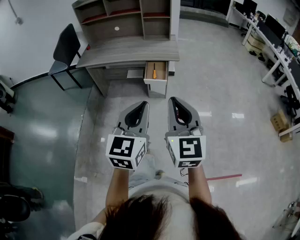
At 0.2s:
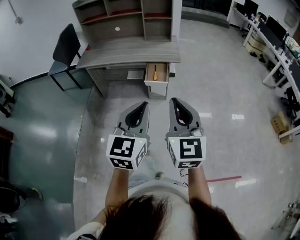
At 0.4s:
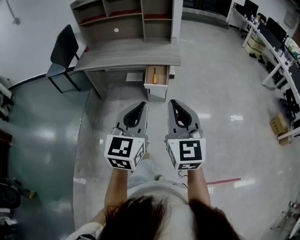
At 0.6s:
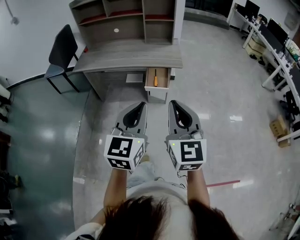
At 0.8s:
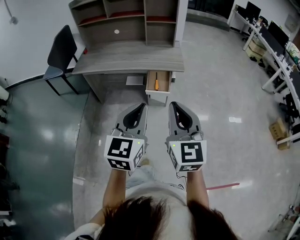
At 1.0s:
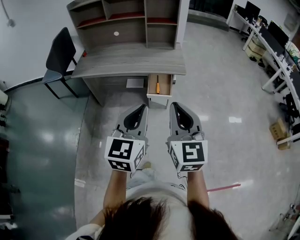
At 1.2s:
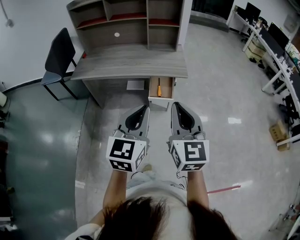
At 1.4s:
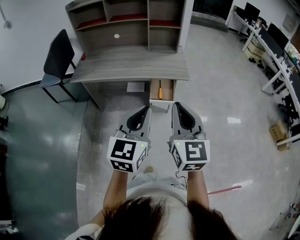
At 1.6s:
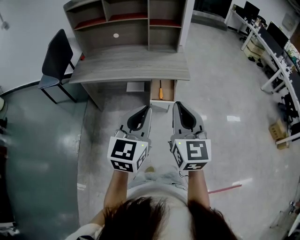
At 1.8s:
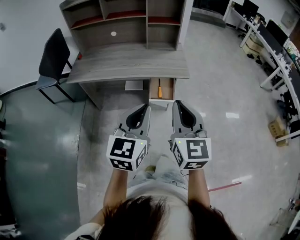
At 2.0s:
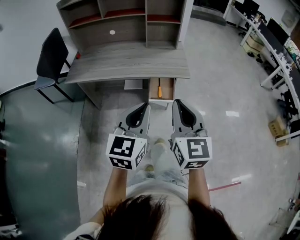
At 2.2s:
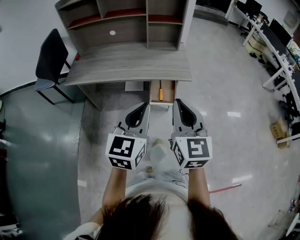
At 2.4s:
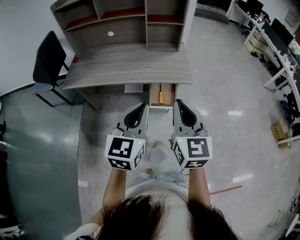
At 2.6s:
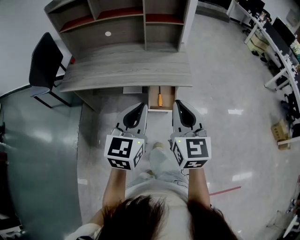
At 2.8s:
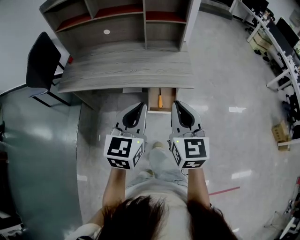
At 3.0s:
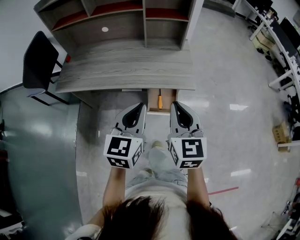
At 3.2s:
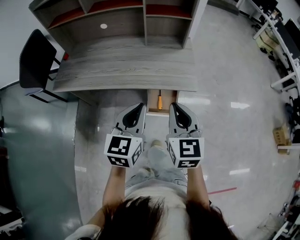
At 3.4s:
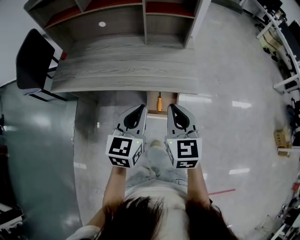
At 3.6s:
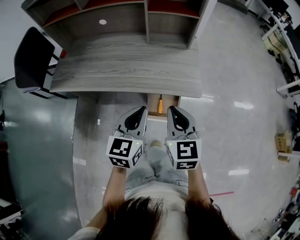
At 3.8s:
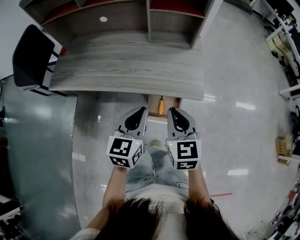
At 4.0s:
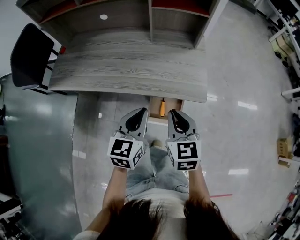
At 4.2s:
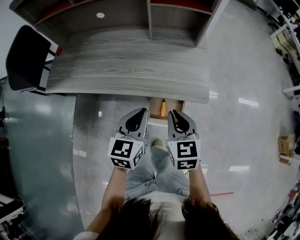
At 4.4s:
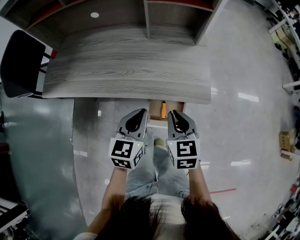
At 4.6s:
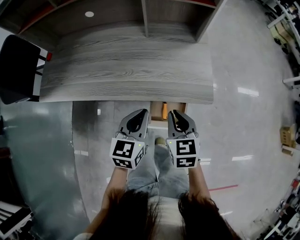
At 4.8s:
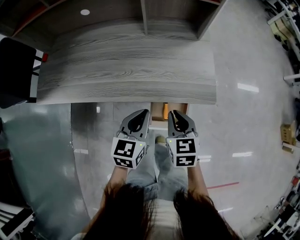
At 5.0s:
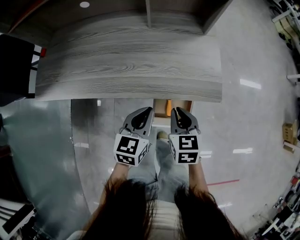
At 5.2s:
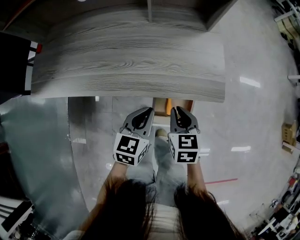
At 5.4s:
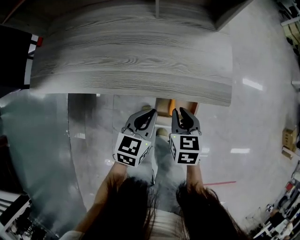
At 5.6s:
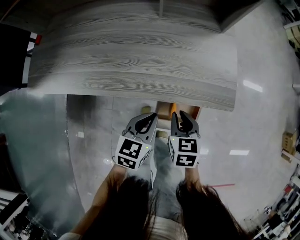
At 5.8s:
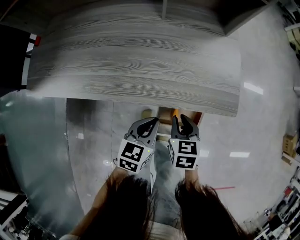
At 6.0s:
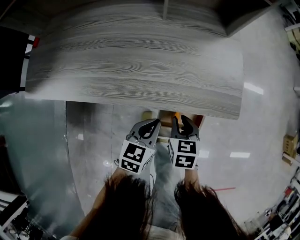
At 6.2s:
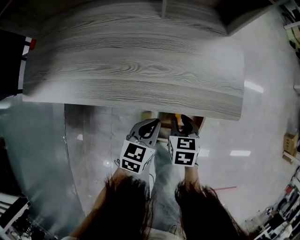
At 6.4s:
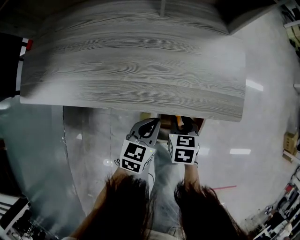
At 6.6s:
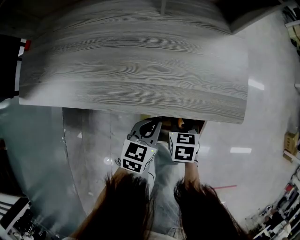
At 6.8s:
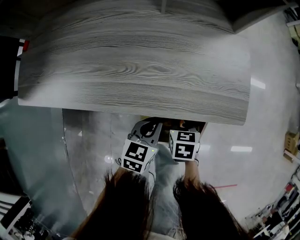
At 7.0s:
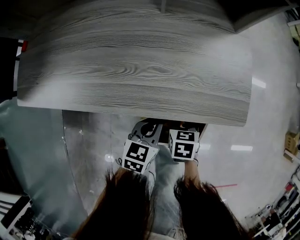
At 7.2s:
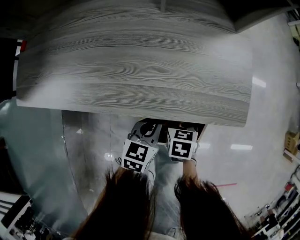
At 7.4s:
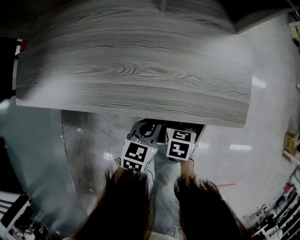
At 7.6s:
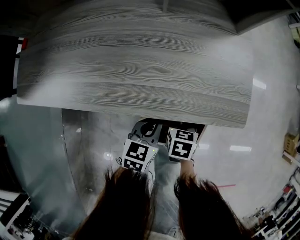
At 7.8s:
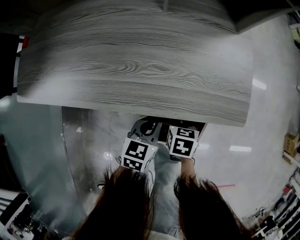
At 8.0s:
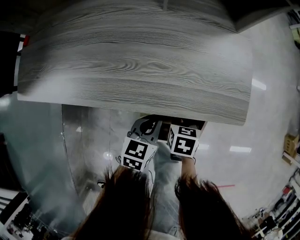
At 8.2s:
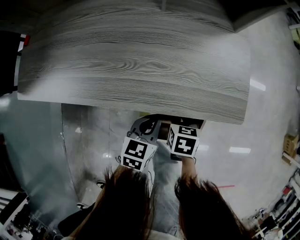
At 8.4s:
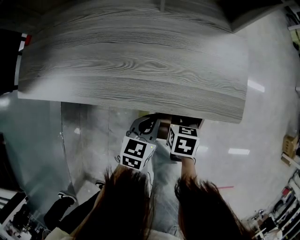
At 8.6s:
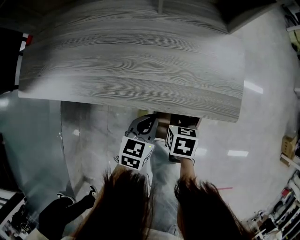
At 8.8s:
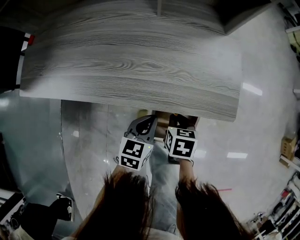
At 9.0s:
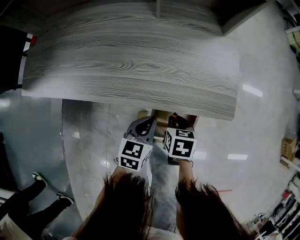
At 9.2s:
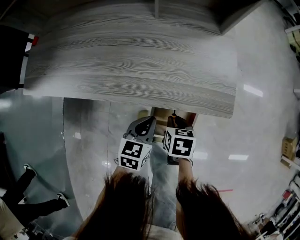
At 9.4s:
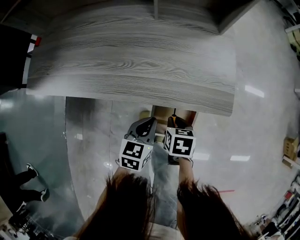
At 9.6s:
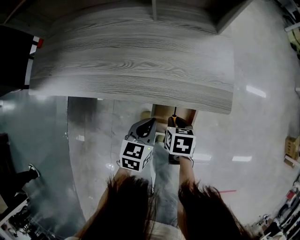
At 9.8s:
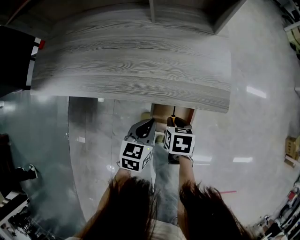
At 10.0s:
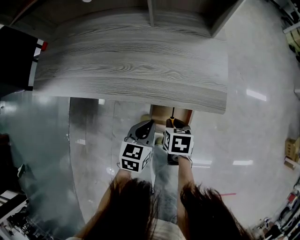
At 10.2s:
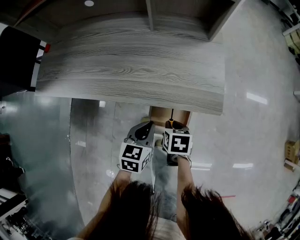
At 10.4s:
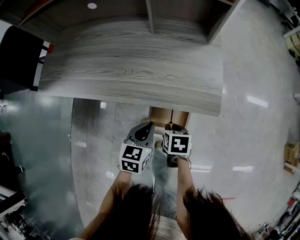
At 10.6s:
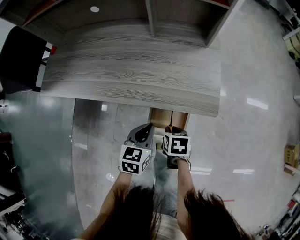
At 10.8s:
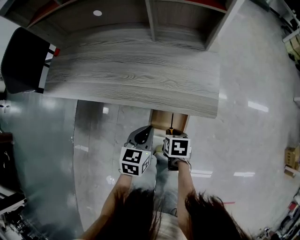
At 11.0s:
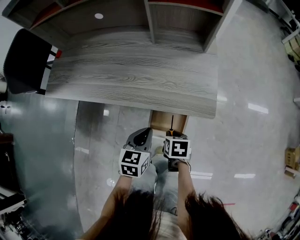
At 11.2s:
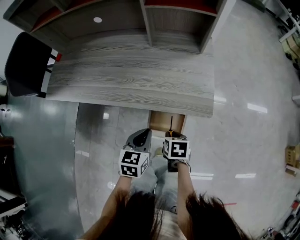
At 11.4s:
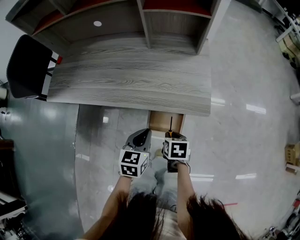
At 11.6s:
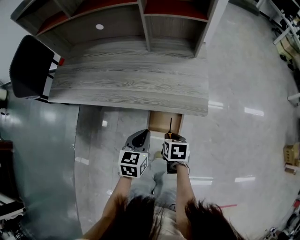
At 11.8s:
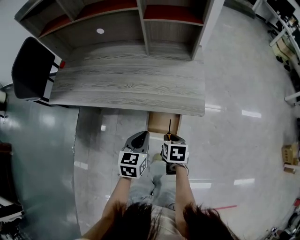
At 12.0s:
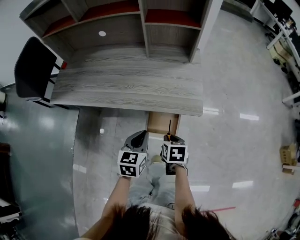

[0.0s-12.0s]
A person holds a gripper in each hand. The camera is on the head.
0.0s to 1.6s: Both grippers travel together forward and to the left, approximately 25 cm.
1.6s to 3.0s: Both grippers travel together forward, some 25 cm.
3.0s to 4.4s: The grippers both shift downward and forward by about 25 cm. The right gripper rotates roughly 20 degrees.
4.4s to 6.0s: Both grippers move downward, approximately 20 cm. The right gripper rotates about 20 degrees.
6.0s to 7.6s: The left gripper travels downward by some 5 cm. The right gripper shifts roughly 10 cm downward.
7.6s to 9.0s: The right gripper shifts by roughly 5 cm.
9.0s to 10.4s: The left gripper heads upward, covering some 5 cm; the right gripper moves approximately 5 cm.
10.4s to 12.0s: The left gripper travels upward by about 10 cm, while the right gripper moves upward and backward, roughly 10 cm.

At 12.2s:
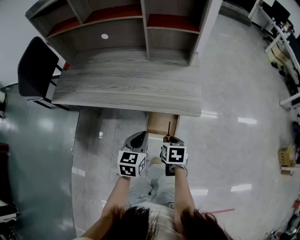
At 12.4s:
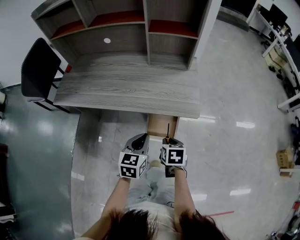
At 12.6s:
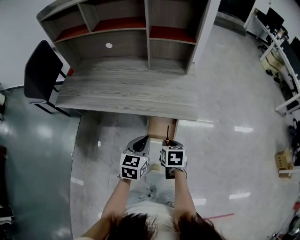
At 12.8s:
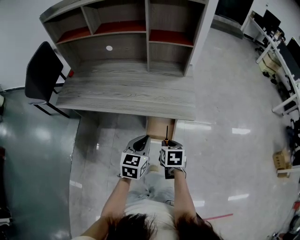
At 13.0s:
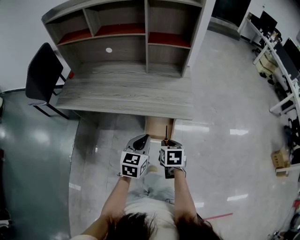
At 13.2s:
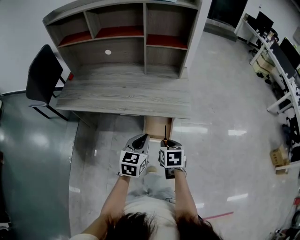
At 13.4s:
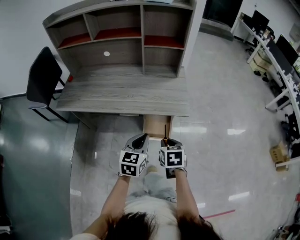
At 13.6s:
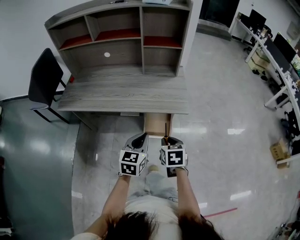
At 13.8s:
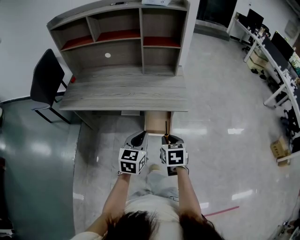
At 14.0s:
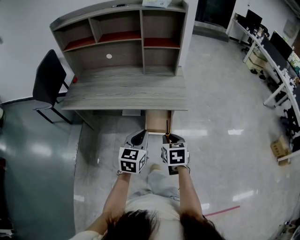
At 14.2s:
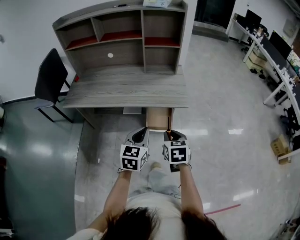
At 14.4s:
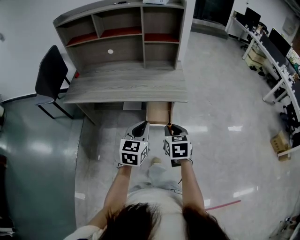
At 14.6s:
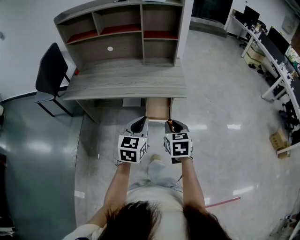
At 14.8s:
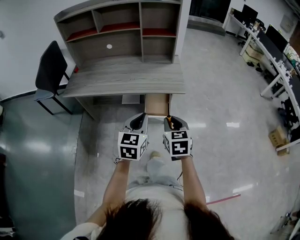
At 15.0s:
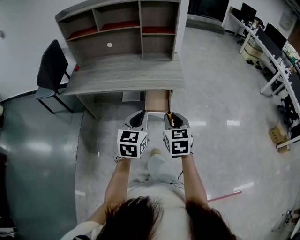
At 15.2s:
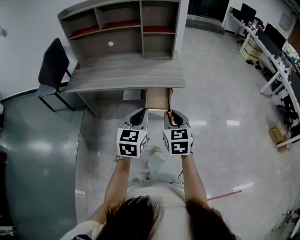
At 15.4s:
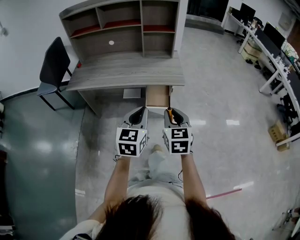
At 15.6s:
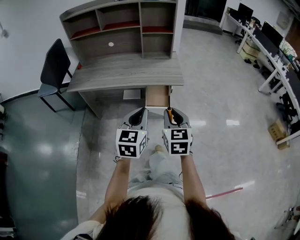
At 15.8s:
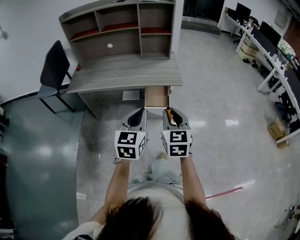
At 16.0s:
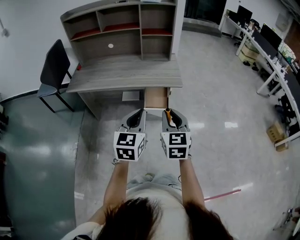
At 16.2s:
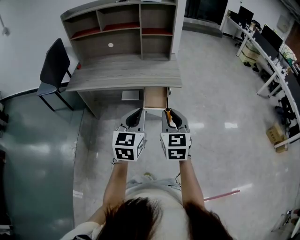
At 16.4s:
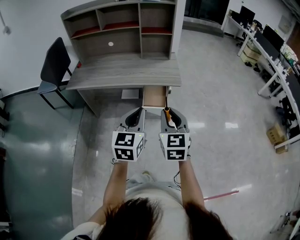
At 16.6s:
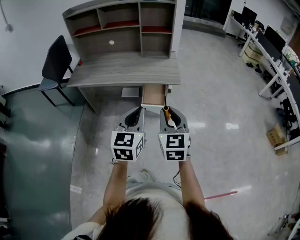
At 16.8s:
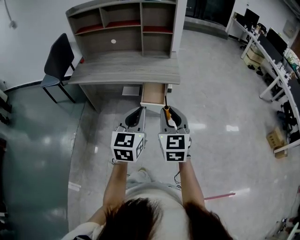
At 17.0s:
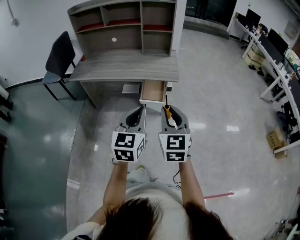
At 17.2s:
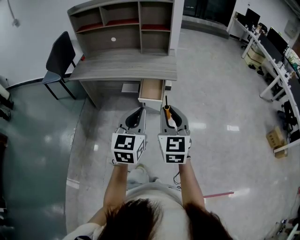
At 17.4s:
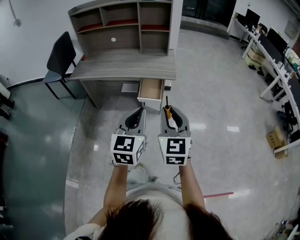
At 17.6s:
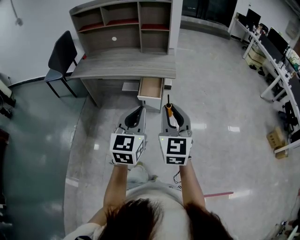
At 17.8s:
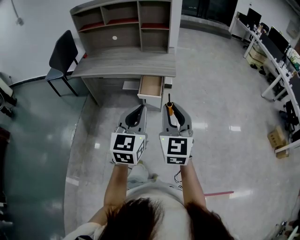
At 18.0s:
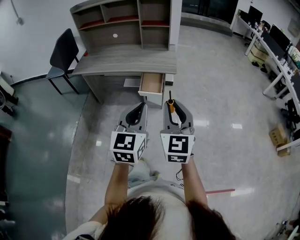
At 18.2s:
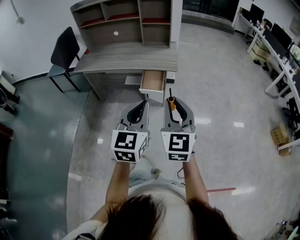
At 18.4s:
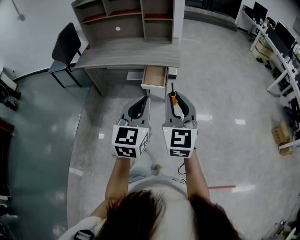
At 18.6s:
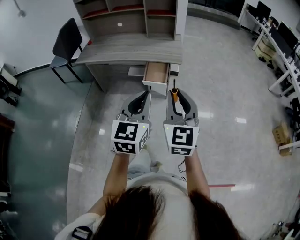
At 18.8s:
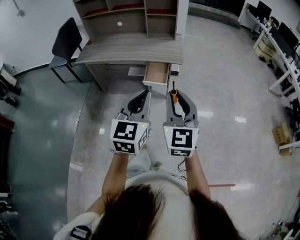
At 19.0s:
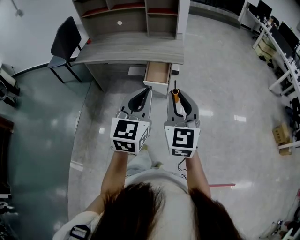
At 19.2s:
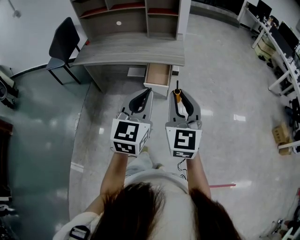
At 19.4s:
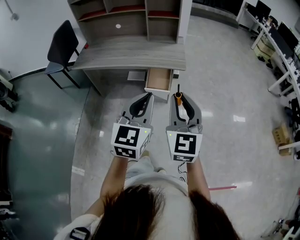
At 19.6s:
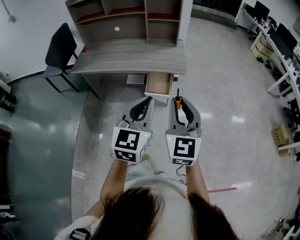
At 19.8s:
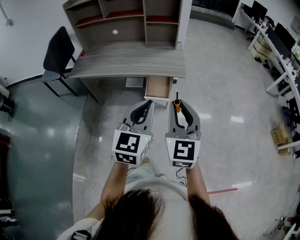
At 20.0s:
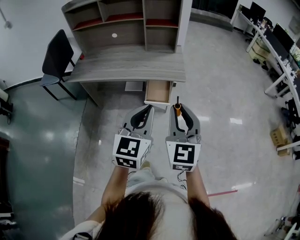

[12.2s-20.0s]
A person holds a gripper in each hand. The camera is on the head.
12.2s to 13.8s: The right gripper heads upward and backward, covering approximately 15 cm. The left gripper travels backward and upward by about 15 cm.
13.8s to 15.4s: Both grippers travel together backward and upward, some 20 cm. The right gripper changes its angle by roughly 30 degrees.
15.4s to 16.8s: The left gripper travels backward by approximately 5 cm, while the right gripper heads upward and backward, covering approximately 10 cm.
16.8s to 18.4s: The right gripper goes roughly 15 cm backward, to the right and upward. Meanwhile the left gripper travels backward and to the right by roughly 15 cm.
18.4s to 20.0s: The two grippers go about 15 cm forward and to the left.

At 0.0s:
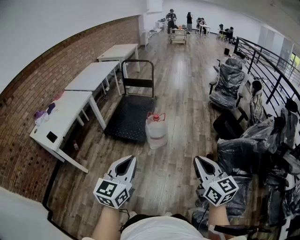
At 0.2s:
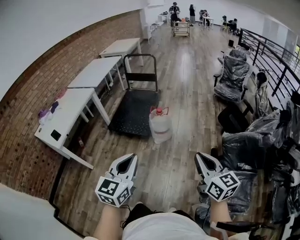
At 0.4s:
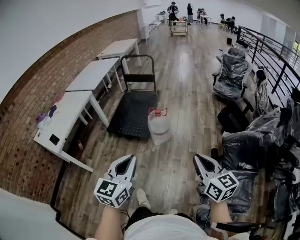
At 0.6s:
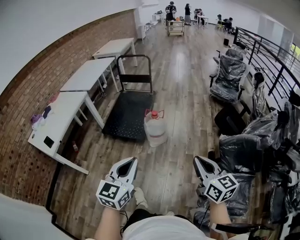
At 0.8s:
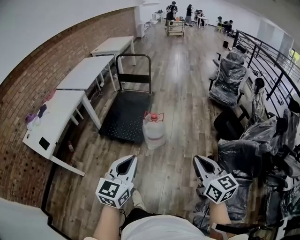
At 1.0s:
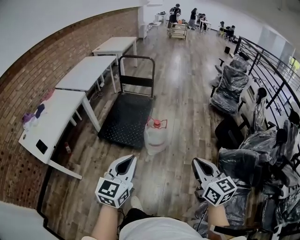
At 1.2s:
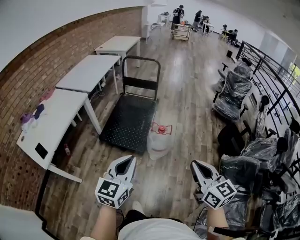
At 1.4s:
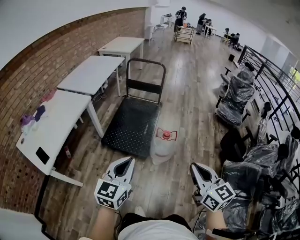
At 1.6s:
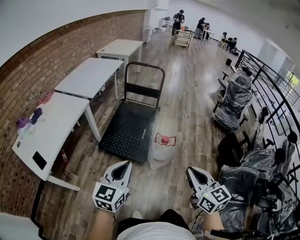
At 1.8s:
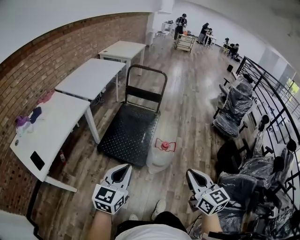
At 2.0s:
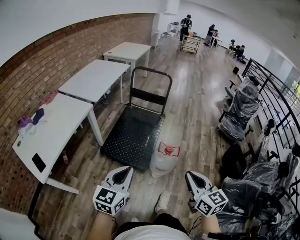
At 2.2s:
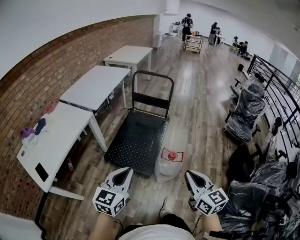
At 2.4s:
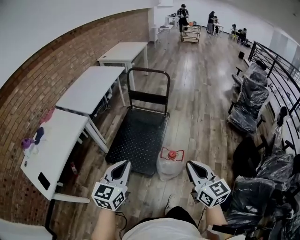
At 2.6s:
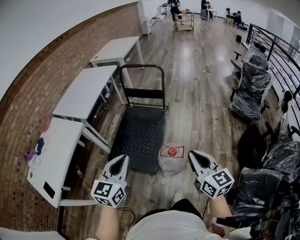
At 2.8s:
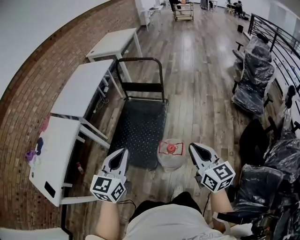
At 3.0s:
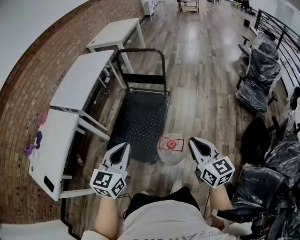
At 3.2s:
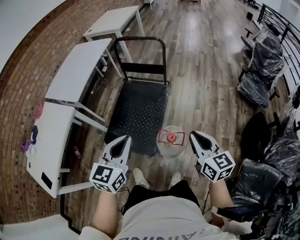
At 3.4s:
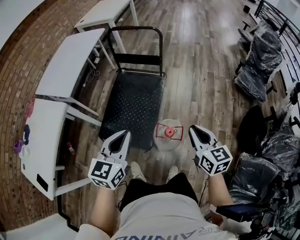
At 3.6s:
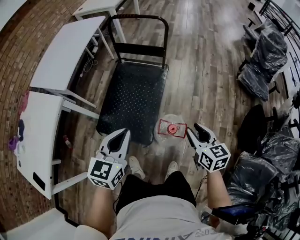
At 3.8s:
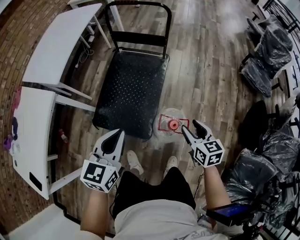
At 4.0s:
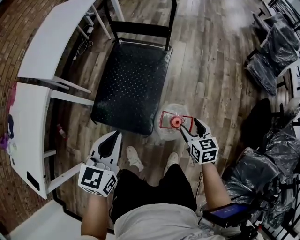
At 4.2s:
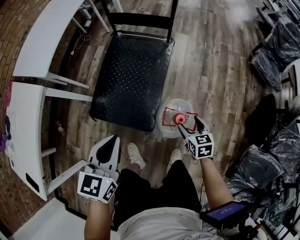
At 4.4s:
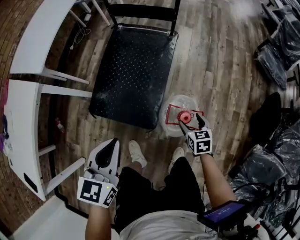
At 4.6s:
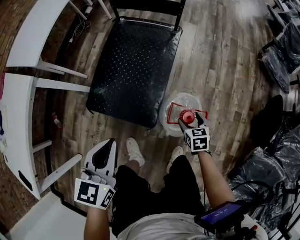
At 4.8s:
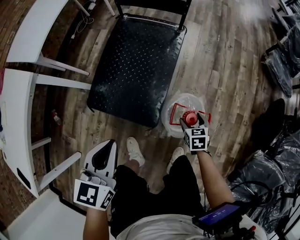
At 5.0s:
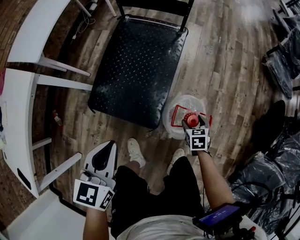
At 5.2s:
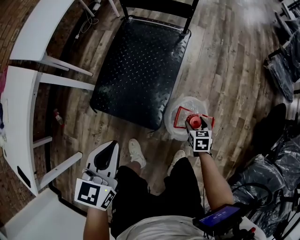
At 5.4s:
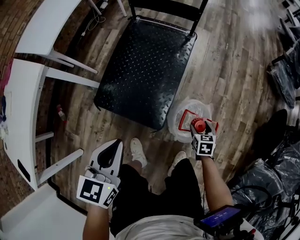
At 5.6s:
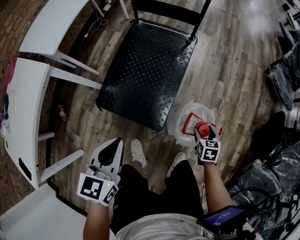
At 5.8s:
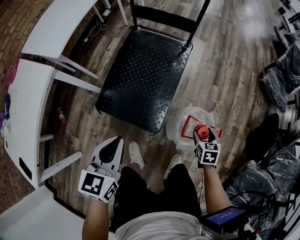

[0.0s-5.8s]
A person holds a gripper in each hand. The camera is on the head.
0.0s to 1.4s: The two grippers go approximately 30 cm forward and to the left.
1.4s to 2.8s: The grippers both shift forward by roughly 30 cm.
2.8s to 4.4s: The left gripper is displaced downward and forward by approximately 25 cm, while the right gripper is displaced downward by some 50 cm, angles its fingers downward, by approximately 40 degrees, and opens its fingers.
4.4s to 5.8s: The right gripper goes downward and returns, roughly 10 cm each way.
